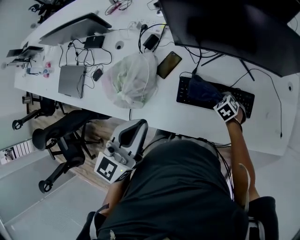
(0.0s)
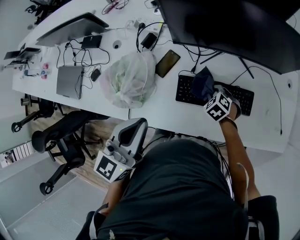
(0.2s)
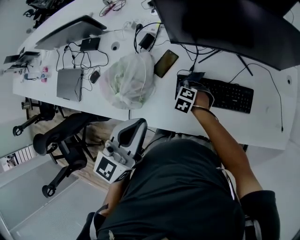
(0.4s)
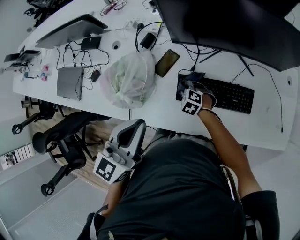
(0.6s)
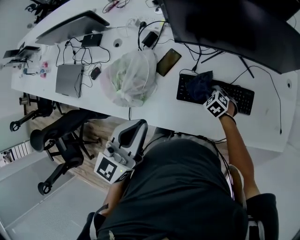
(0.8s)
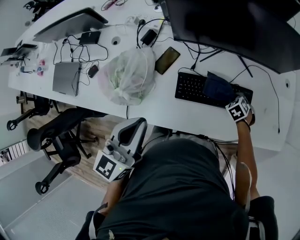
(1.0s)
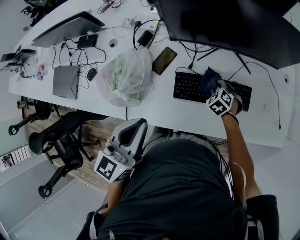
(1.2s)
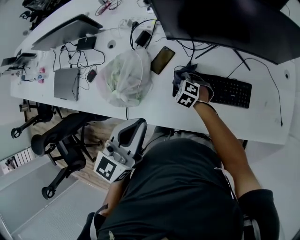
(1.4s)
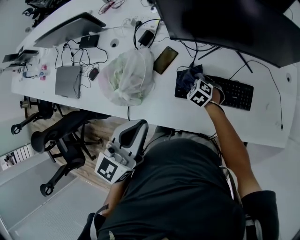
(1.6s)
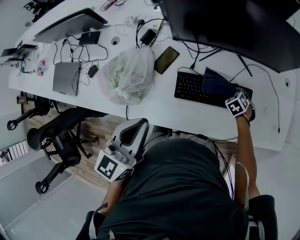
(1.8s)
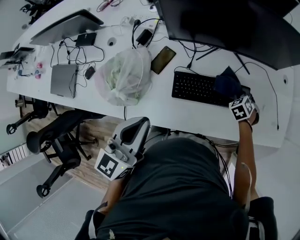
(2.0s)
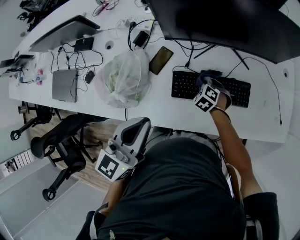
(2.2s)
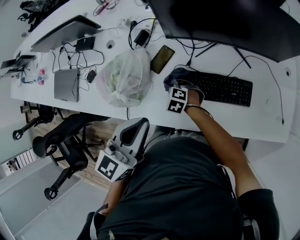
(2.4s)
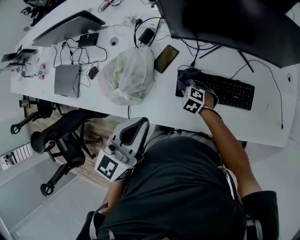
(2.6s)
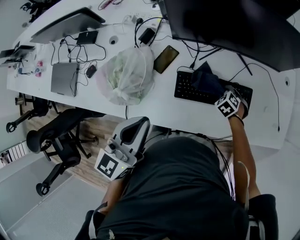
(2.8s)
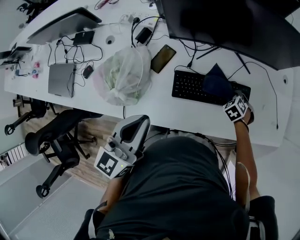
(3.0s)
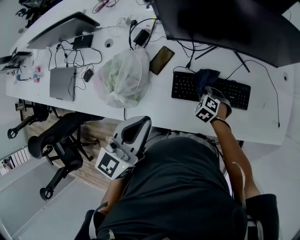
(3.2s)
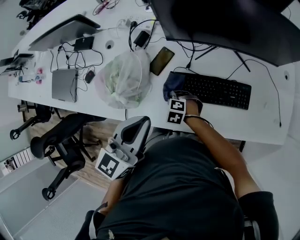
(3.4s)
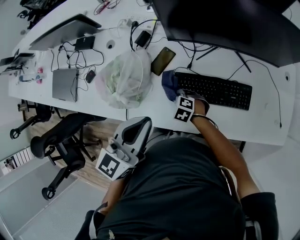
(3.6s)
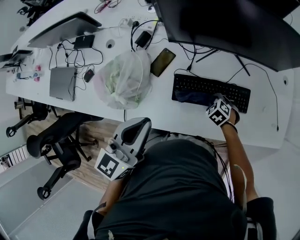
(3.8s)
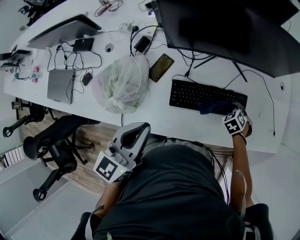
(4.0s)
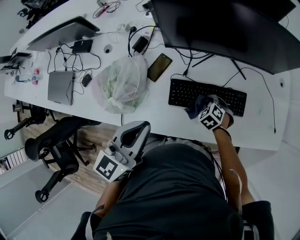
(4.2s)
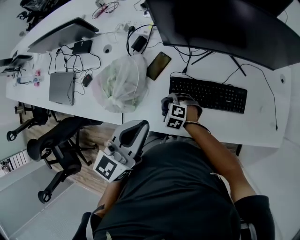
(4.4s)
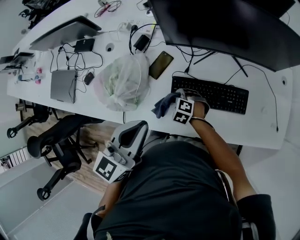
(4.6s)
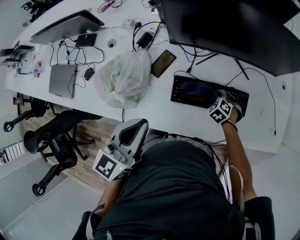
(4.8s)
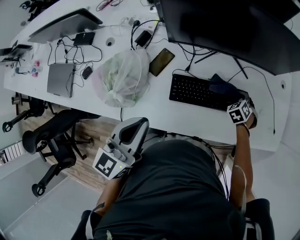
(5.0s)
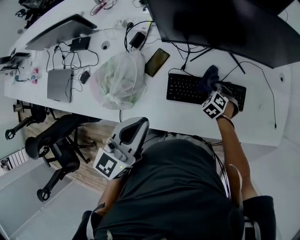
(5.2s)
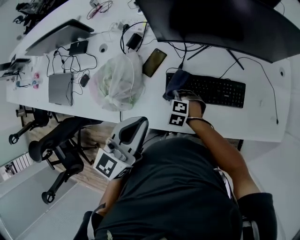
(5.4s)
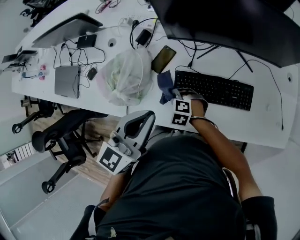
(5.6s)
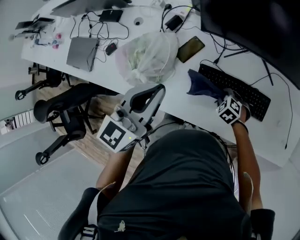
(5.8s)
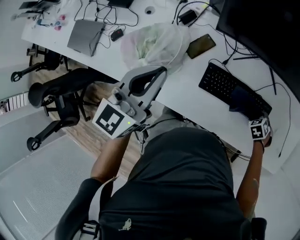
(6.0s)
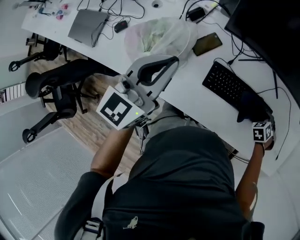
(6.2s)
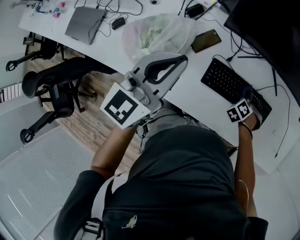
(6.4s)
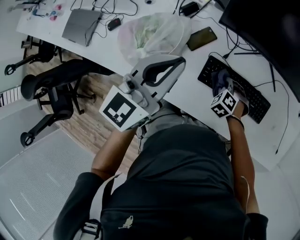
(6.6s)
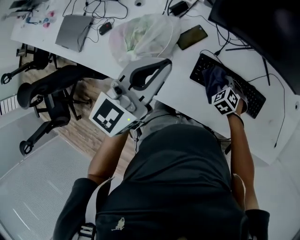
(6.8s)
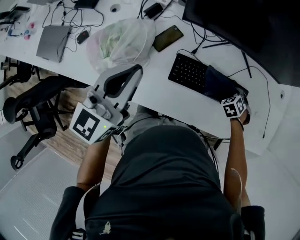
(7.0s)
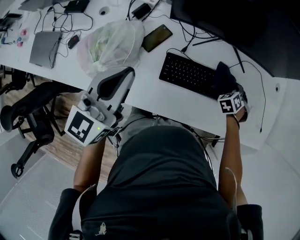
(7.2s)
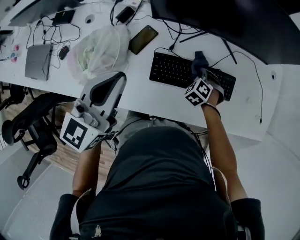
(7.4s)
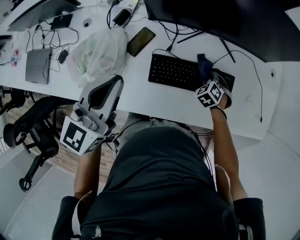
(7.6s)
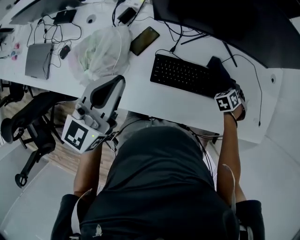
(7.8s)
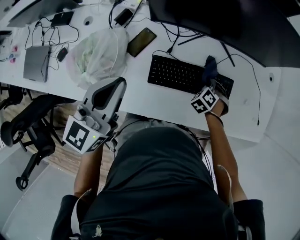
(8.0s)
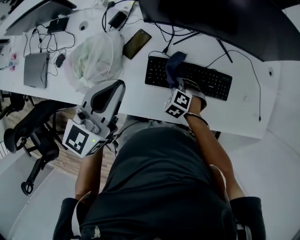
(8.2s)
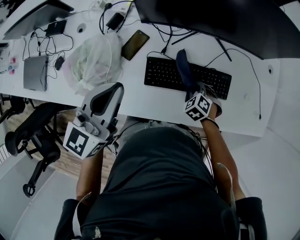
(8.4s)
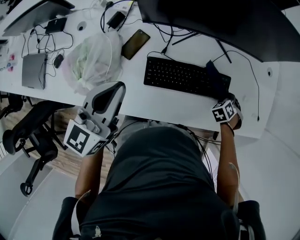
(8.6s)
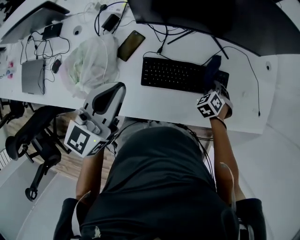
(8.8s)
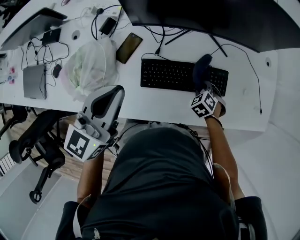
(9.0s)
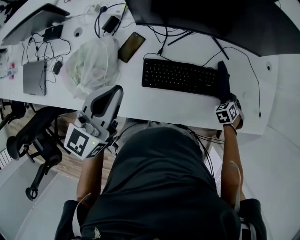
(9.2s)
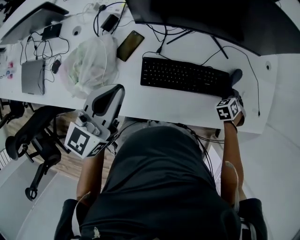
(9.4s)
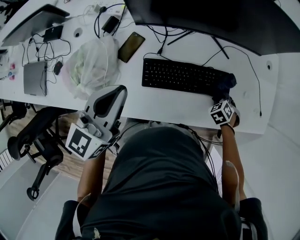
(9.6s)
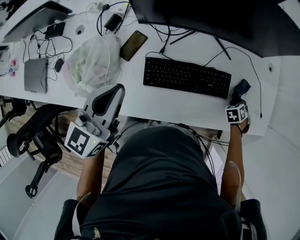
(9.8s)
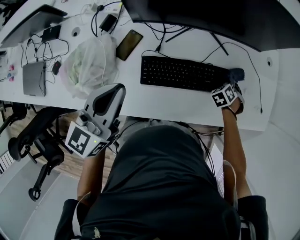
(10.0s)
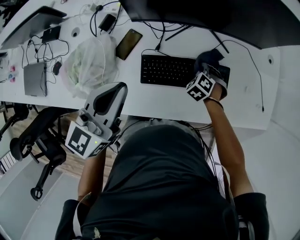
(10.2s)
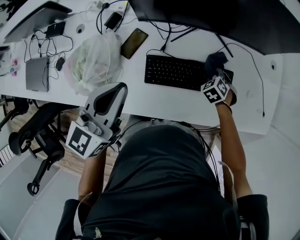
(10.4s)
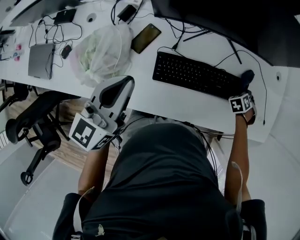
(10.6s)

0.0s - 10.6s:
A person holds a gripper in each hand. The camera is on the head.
0.0s - 1.6s: The right gripper ends up about 15 cm from where it was.
1.6s - 3.0s: The right gripper ends up some 20 cm from where it was, and rotates some 20 degrees.
3.0s - 4.6s: The right gripper shifts by some 25 cm, and swivels approximately 30 degrees.
4.6s - 6.0s: The left gripper moves approximately 10 cm. The right gripper shifts by approximately 30 cm, and turns by about 30 degrees.
6.0s - 7.6s: The left gripper shifts by approximately 5 cm.
9.0s - 10.6s: The right gripper ends up about 20 cm from where it was, and rotates some 20 degrees.

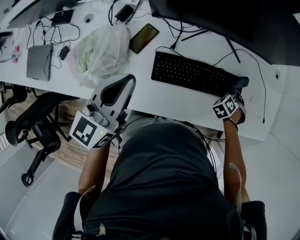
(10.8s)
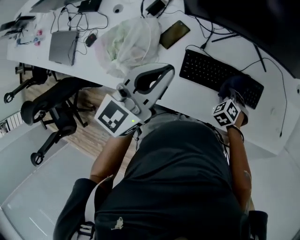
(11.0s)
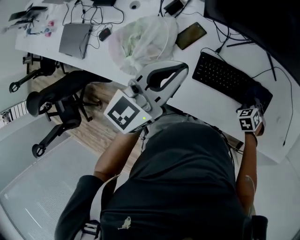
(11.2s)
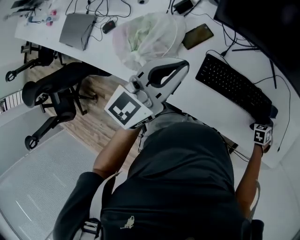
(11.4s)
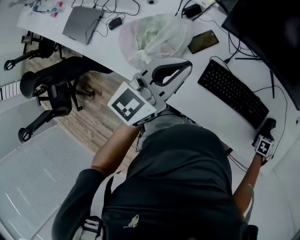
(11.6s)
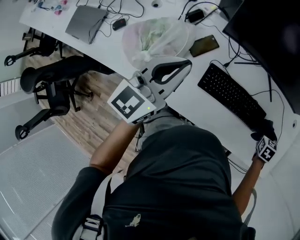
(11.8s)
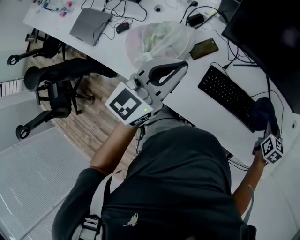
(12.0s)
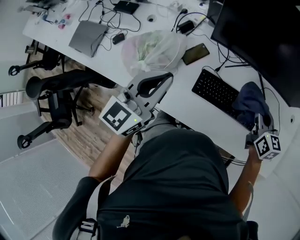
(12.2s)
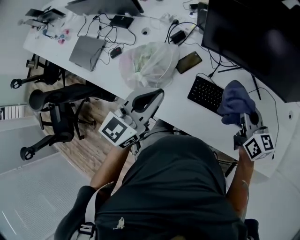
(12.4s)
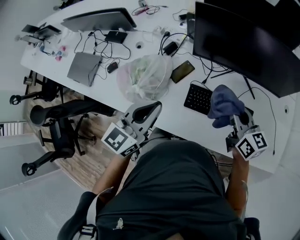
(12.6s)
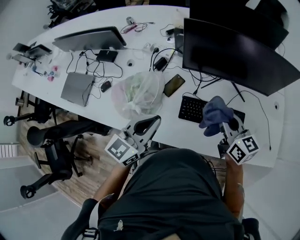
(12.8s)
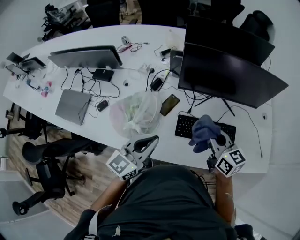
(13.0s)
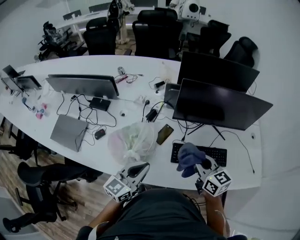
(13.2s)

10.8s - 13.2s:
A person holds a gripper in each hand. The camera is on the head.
10.8s - 12.0s: The right gripper goes some 15 cm upward, and changes its angle by roughly 60 degrees, while the left gripper changes place by about 5 cm.
12.0s - 13.2s: The right gripper shifts some 40 cm to the left, upward and backward, and rotates about 30 degrees. The left gripper heads backward and to the left, covering roughly 15 cm.

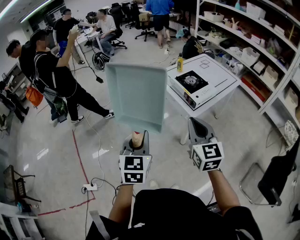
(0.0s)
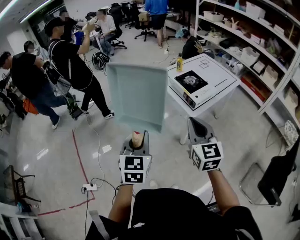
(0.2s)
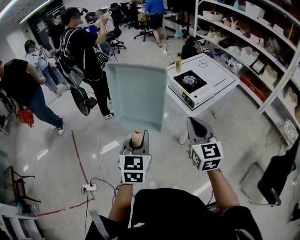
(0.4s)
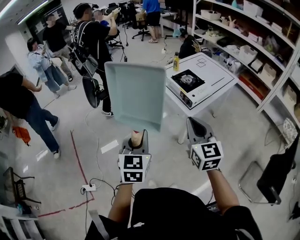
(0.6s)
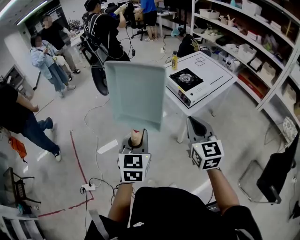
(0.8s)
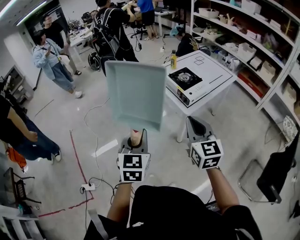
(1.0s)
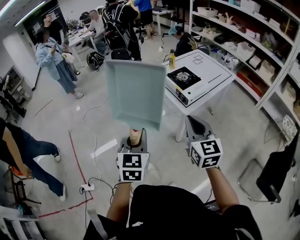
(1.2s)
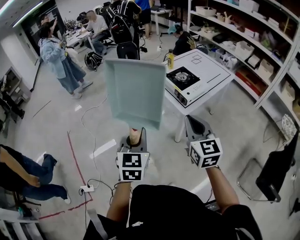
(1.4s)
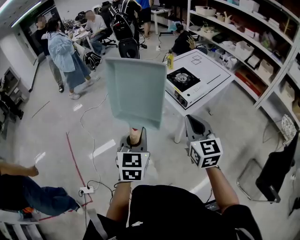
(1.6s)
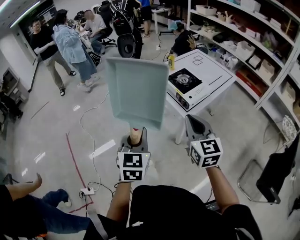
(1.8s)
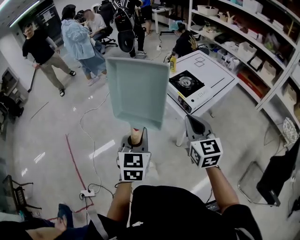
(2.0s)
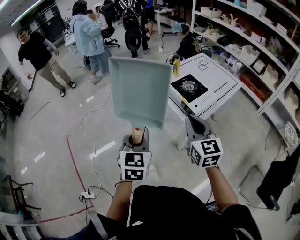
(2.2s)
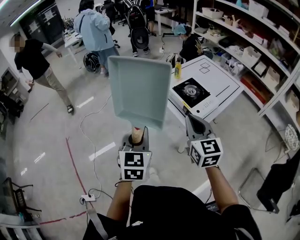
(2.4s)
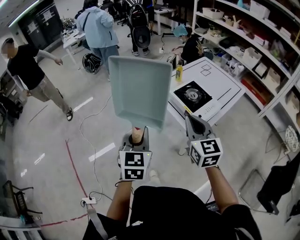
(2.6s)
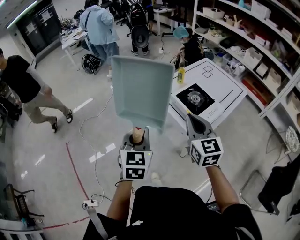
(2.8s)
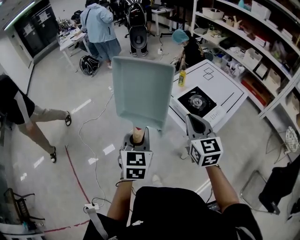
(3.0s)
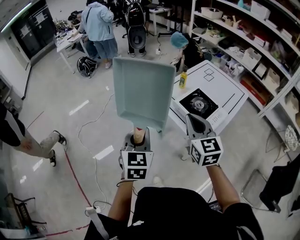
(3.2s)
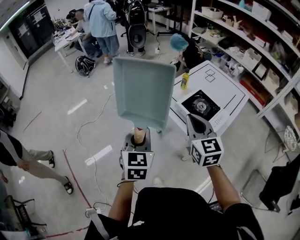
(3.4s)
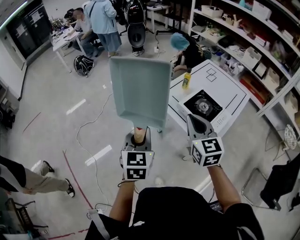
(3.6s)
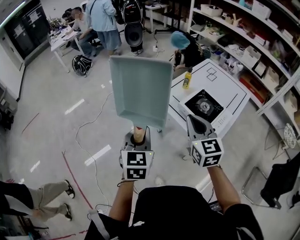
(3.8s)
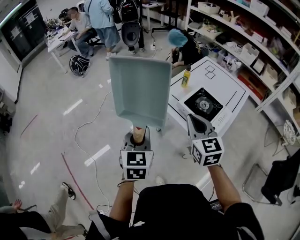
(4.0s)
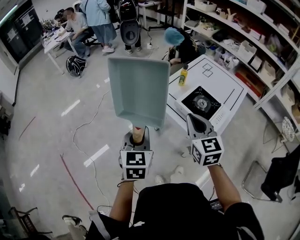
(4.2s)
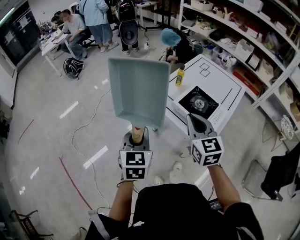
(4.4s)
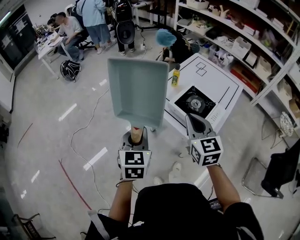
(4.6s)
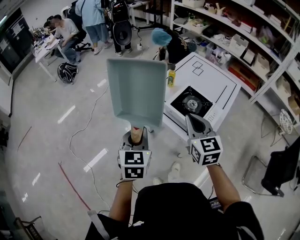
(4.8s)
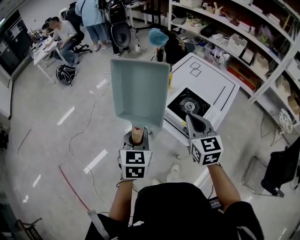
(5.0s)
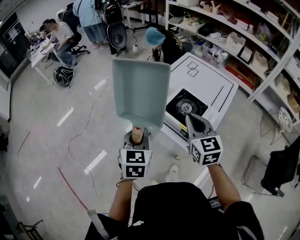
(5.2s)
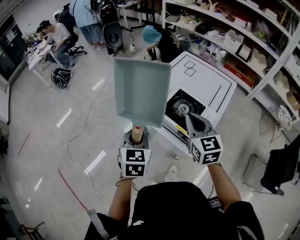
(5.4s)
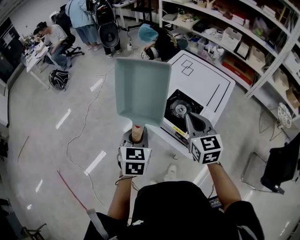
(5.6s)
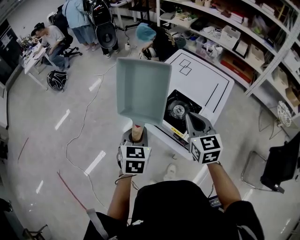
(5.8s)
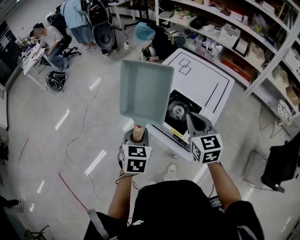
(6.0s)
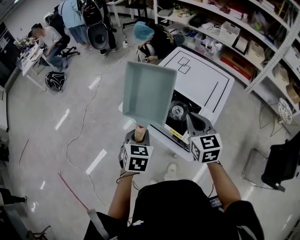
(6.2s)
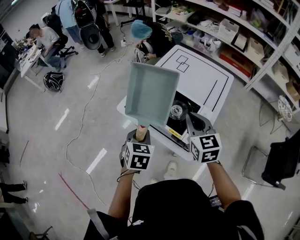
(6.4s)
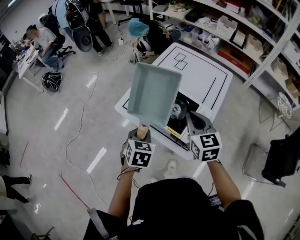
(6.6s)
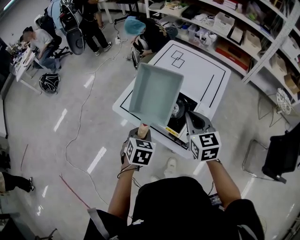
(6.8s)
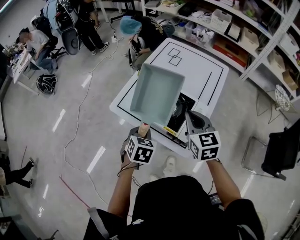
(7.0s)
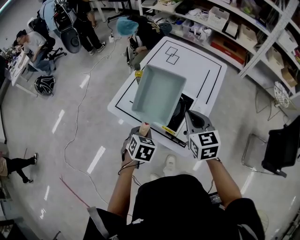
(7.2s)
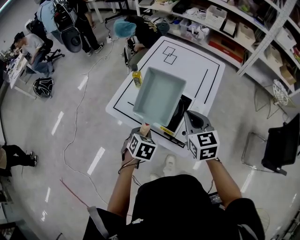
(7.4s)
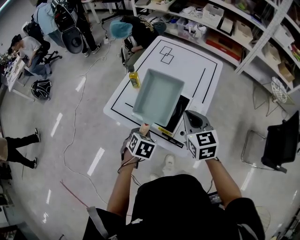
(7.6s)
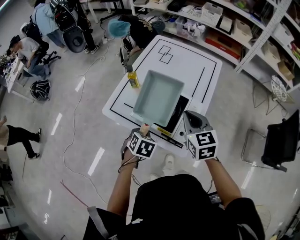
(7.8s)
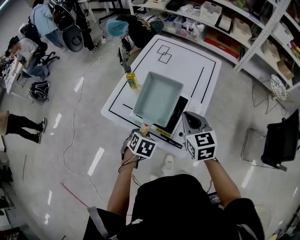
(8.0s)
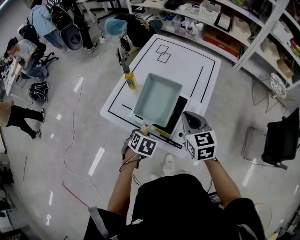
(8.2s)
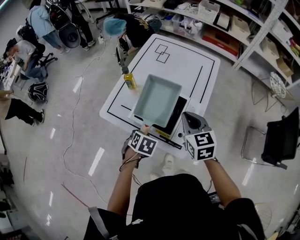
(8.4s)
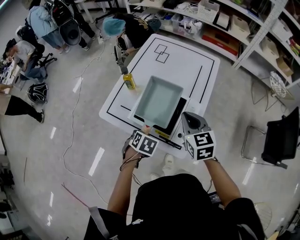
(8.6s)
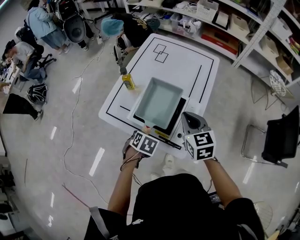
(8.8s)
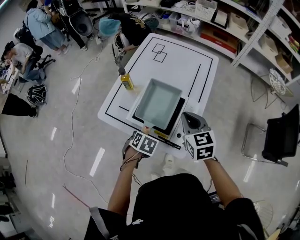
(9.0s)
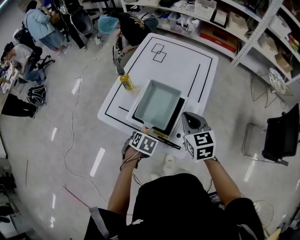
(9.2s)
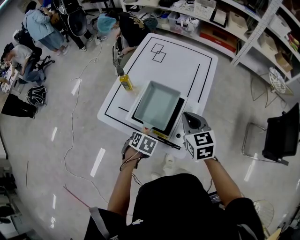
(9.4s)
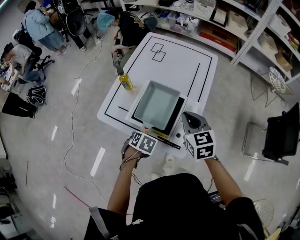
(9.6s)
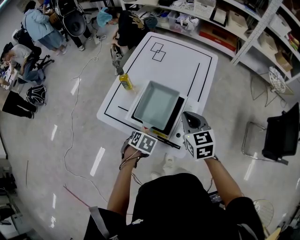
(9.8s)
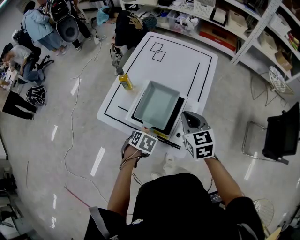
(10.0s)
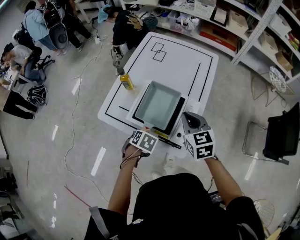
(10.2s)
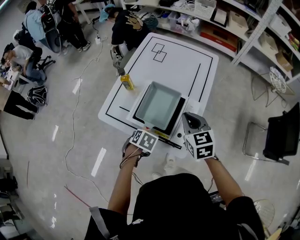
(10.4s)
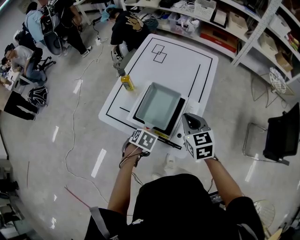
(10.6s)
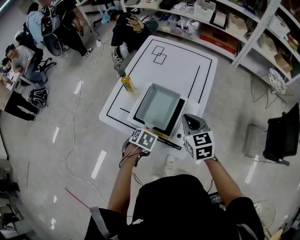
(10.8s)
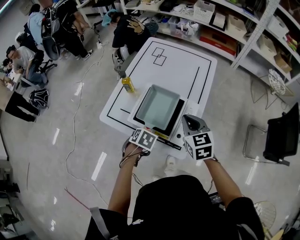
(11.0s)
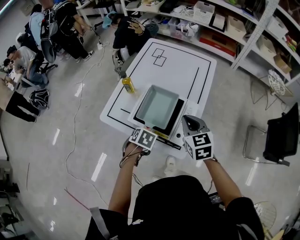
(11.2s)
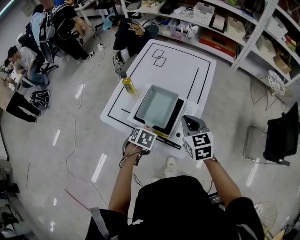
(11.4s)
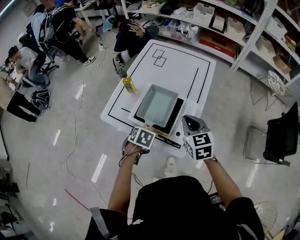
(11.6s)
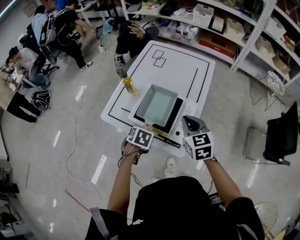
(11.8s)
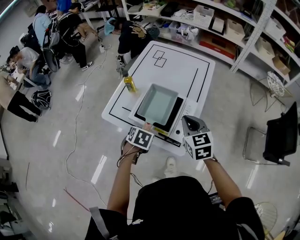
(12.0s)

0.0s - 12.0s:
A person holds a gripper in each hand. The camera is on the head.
0.0s - 1.6s: The left gripper changes place by roughly 5 cm; the right gripper moves roughly 5 cm.
1.6s - 3.0s: The grippers both shift forward by roughly 25 cm.
3.0s - 4.4s: The two grippers go some 10 cm forward.
4.4s - 6.0s: The left gripper travels to the right, forward and downward by approximately 20 cm. The right gripper moves to the right and forward, approximately 20 cm.
6.0s - 7.6s: The left gripper shifts some 15 cm downward and to the right, and turns by roughly 30 degrees; the right gripper travels to the right and downward by approximately 10 cm.
7.6s - 9.0s: The left gripper goes roughly 5 cm downward.
9.0s - 10.4s: The grippers move only a little.
10.4s - 12.0s: The left gripper heads upward, covering about 5 cm, and opens, while the right gripper ends up approximately 5 cm from where it was.
